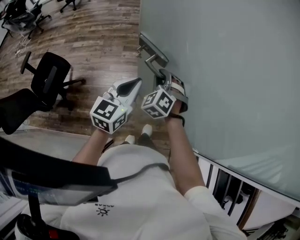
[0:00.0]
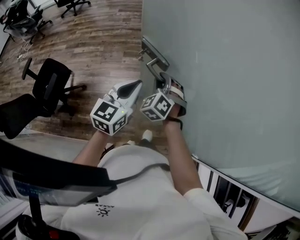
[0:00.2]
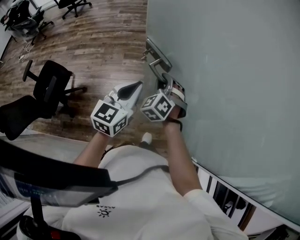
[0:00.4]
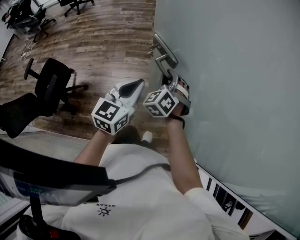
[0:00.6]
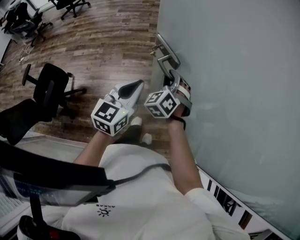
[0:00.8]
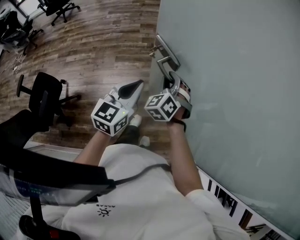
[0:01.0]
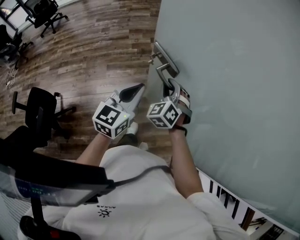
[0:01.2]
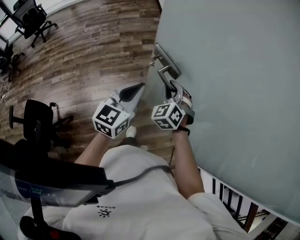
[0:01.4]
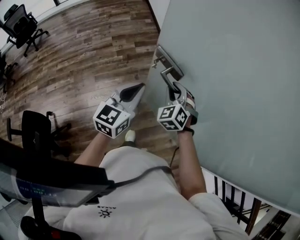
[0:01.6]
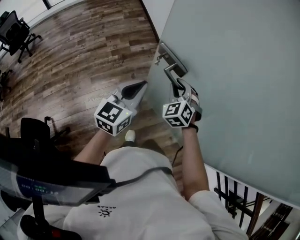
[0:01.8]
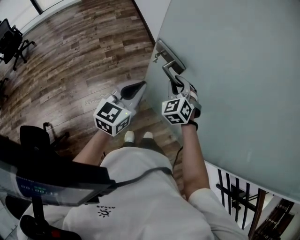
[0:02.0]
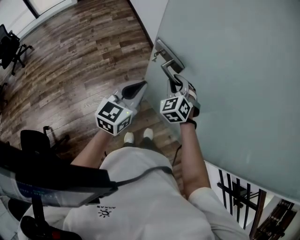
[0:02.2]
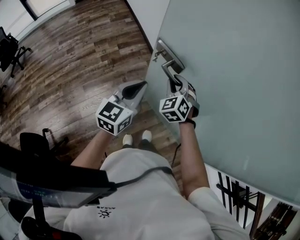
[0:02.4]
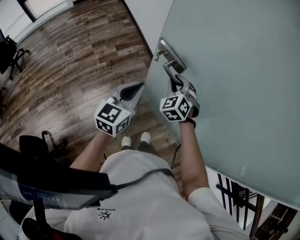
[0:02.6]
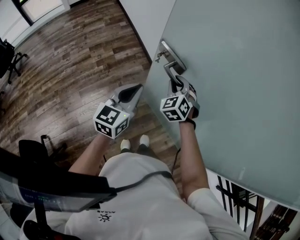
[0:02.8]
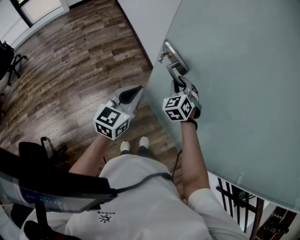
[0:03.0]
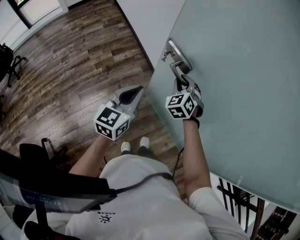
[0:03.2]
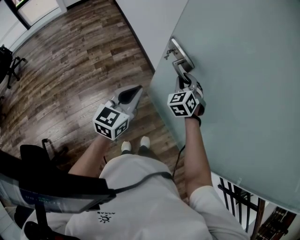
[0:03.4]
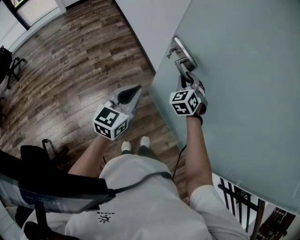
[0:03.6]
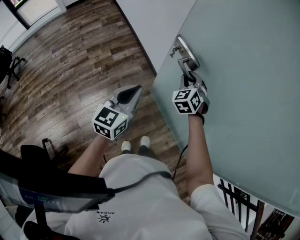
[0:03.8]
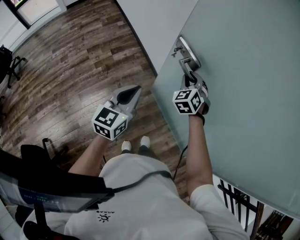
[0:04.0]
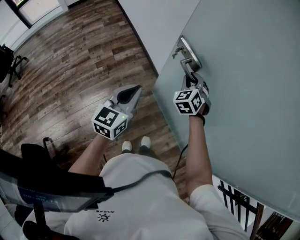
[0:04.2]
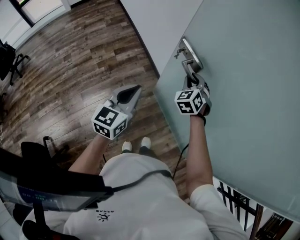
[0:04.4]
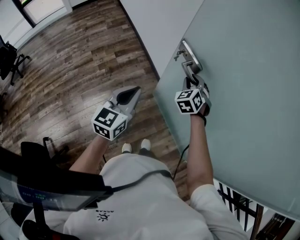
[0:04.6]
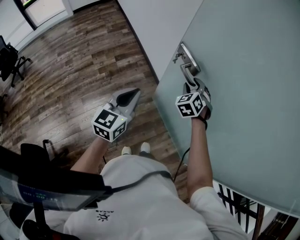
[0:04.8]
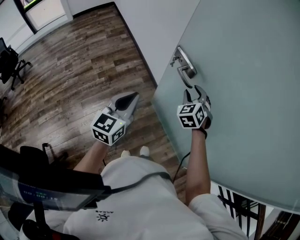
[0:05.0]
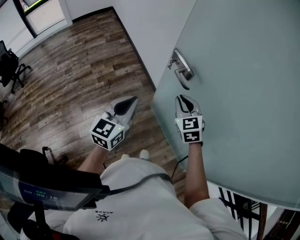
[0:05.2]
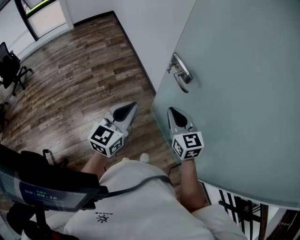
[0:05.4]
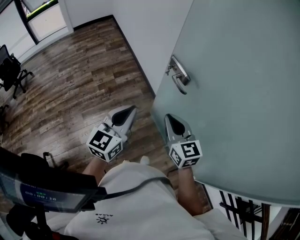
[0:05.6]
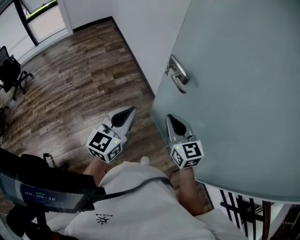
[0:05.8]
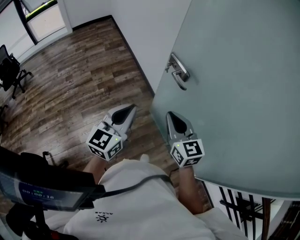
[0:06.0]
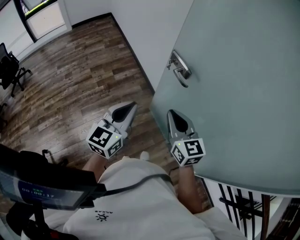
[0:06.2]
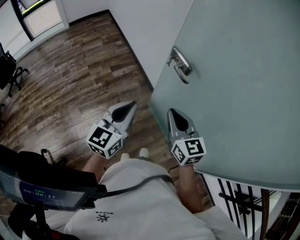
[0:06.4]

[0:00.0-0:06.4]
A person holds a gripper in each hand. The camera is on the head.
0.0 to 1.6 s: The left gripper travels forward by about 30 cm; the right gripper is displaced forward and to the right by approximately 30 cm, and changes its angle by roughly 20 degrees.
1.6 to 3.2 s: The left gripper moves forward, approximately 20 cm. The right gripper travels forward and to the right by roughly 25 cm.
4.8 to 6.4 s: The right gripper shifts approximately 25 cm backward and upward, swivels roughly 60 degrees, and closes its fingers. Meanwhile the left gripper moves backward, roughly 5 cm.

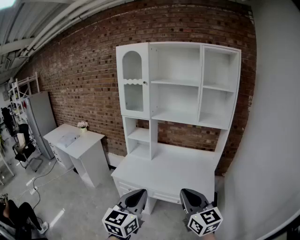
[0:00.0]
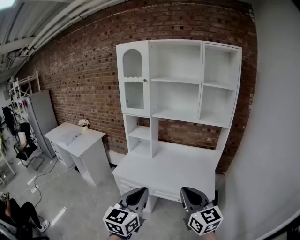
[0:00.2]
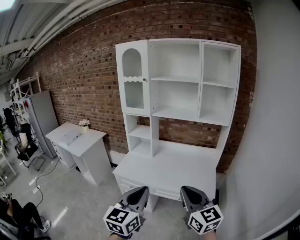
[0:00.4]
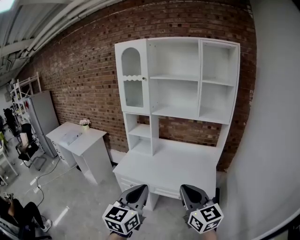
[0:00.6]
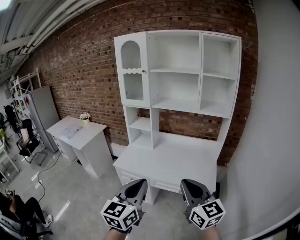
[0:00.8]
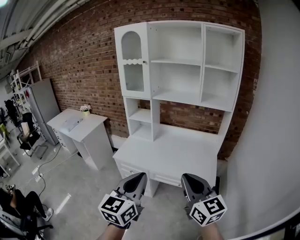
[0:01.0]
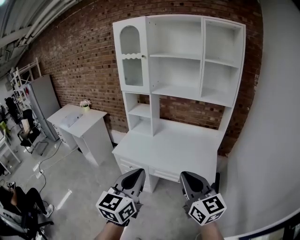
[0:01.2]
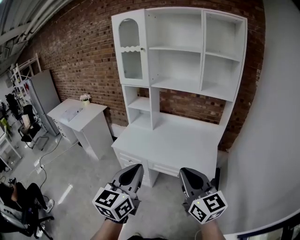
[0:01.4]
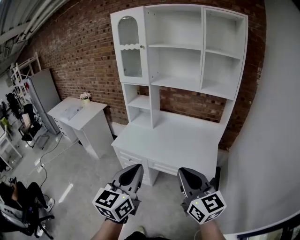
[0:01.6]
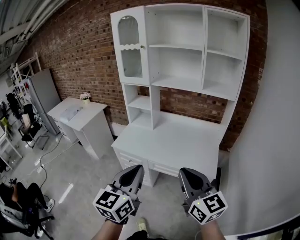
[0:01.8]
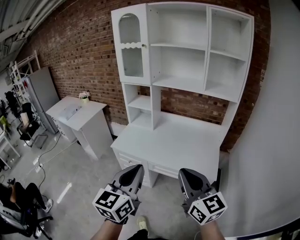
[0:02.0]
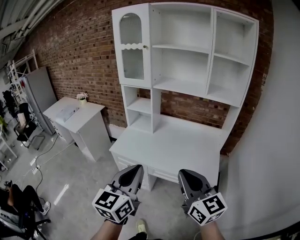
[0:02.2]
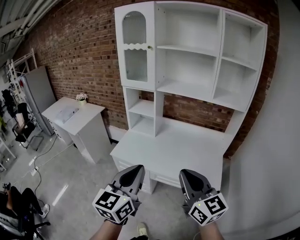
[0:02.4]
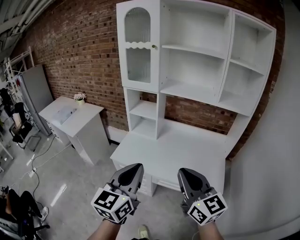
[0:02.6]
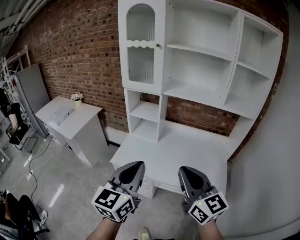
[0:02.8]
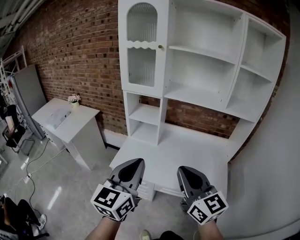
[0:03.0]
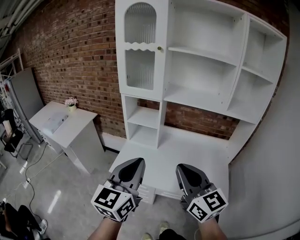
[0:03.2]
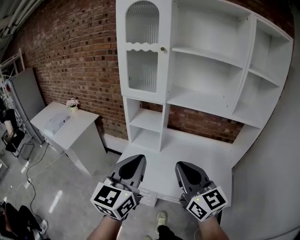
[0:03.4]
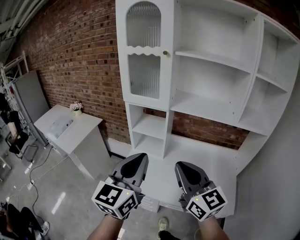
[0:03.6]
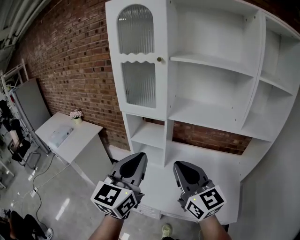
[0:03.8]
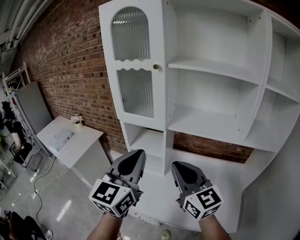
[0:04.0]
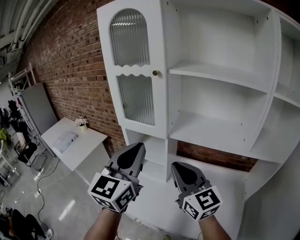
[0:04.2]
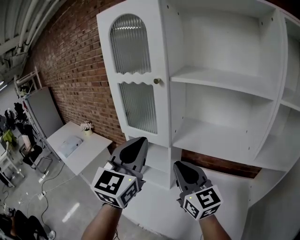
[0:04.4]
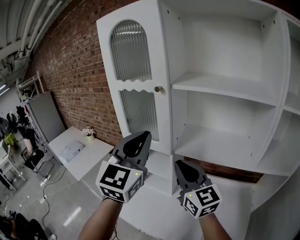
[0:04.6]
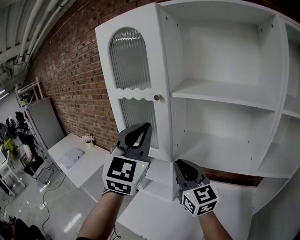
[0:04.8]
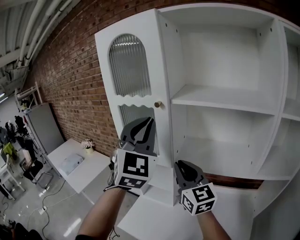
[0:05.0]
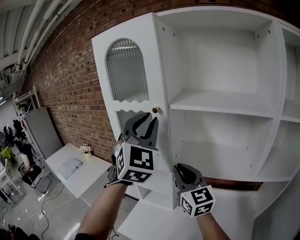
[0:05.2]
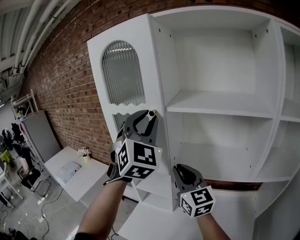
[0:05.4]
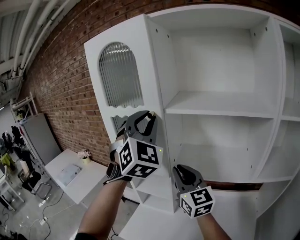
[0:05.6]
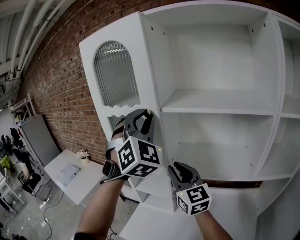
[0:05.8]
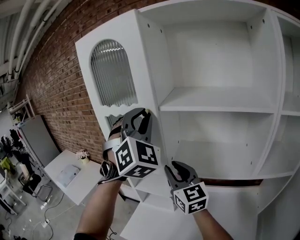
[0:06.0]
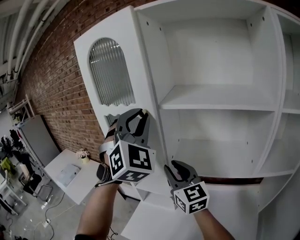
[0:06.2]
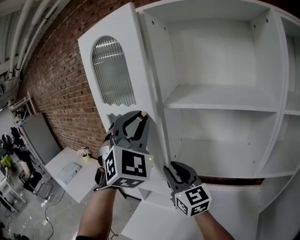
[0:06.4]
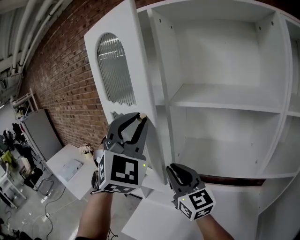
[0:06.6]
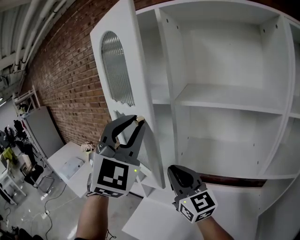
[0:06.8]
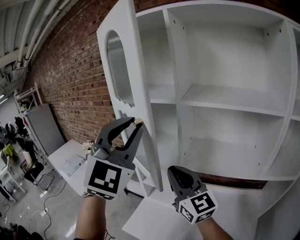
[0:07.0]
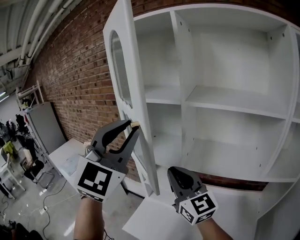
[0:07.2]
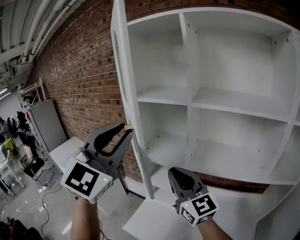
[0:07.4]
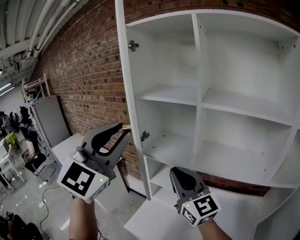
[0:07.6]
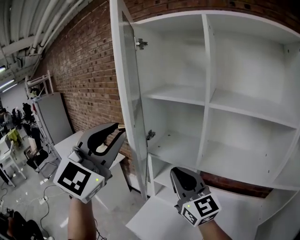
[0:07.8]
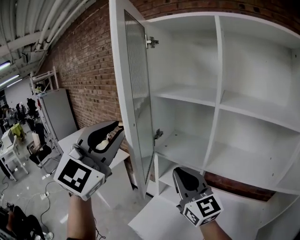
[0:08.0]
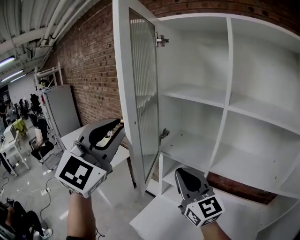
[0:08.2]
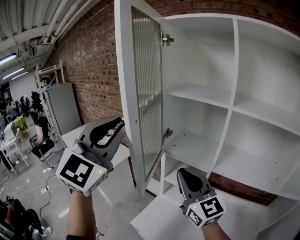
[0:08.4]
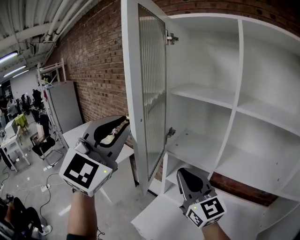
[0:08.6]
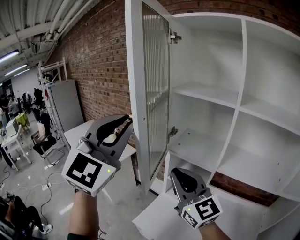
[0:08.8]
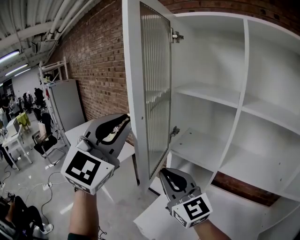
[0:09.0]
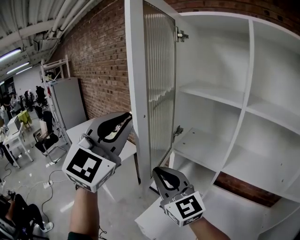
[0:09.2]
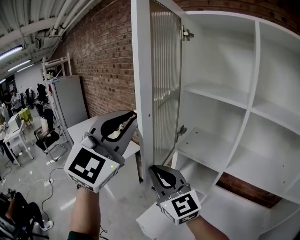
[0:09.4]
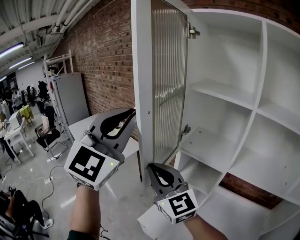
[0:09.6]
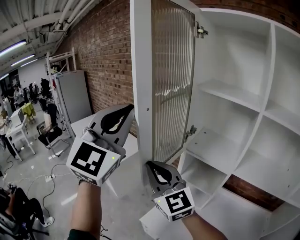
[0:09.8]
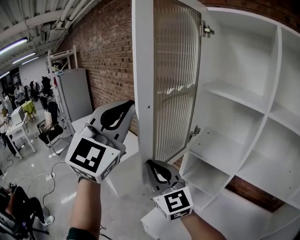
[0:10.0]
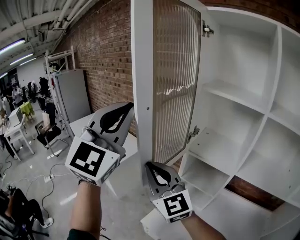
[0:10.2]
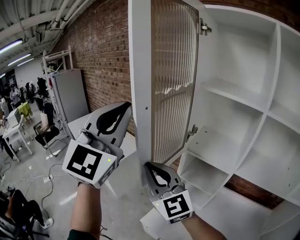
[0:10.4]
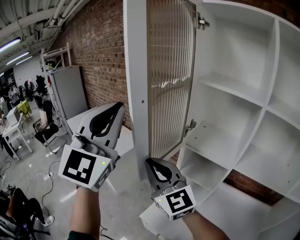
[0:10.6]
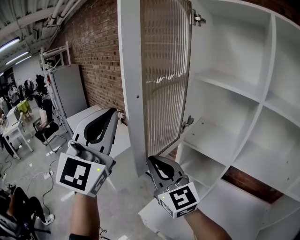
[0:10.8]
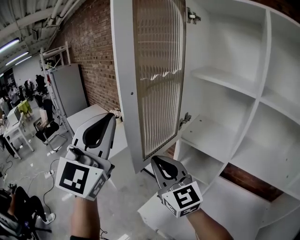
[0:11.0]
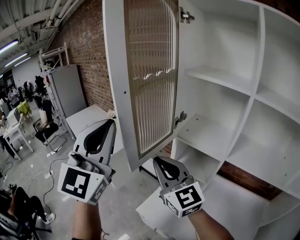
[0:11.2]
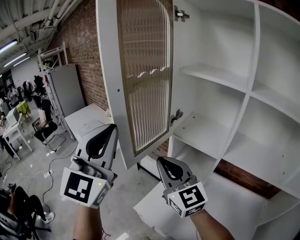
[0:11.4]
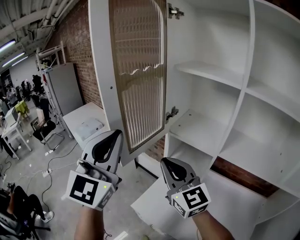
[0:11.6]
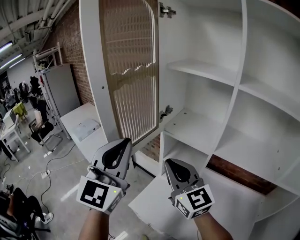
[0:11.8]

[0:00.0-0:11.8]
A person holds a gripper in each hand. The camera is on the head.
0.0 to 1.4 s: The grippers stay close to where they were, moving slightly.
1.4 to 3.0 s: The two grippers go approximately 30 cm forward and to the left.
3.0 to 4.4 s: The left gripper travels forward and upward by approximately 35 cm, and turns by some 20 degrees; the right gripper heads forward, covering approximately 35 cm.
4.4 to 6.0 s: The right gripper shifts approximately 15 cm forward. Meanwhile the left gripper travels forward and upward by some 20 cm, and rolls clockwise, seen from behind, by about 50 degrees.
6.0 to 7.4 s: The right gripper travels to the left and backward by approximately 10 cm. Meanwhile the left gripper heads to the left and backward, covering about 20 cm, and swivels approximately 30 degrees.
7.4 to 8.8 s: Both grippers move to the left, some 15 cm.
8.8 to 10.4 s: The right gripper heads to the left, covering roughly 15 cm, while the left gripper goes about 10 cm to the left and forward.
10.4 to 11.8 s: The right gripper goes roughly 15 cm to the right. Meanwhile the left gripper shifts some 20 cm downward, to the right and backward.

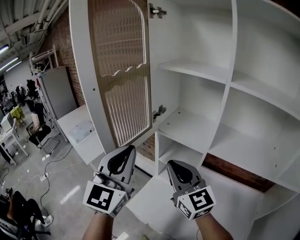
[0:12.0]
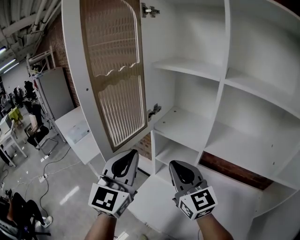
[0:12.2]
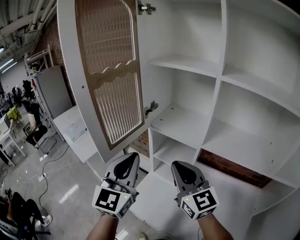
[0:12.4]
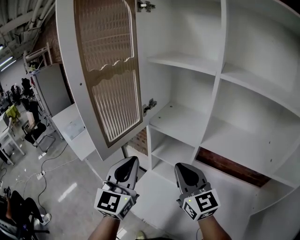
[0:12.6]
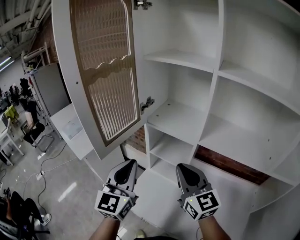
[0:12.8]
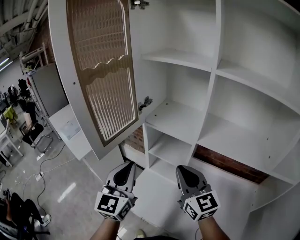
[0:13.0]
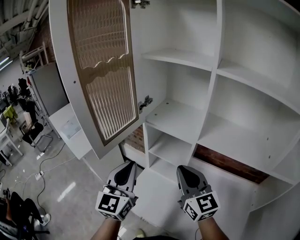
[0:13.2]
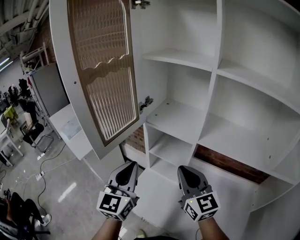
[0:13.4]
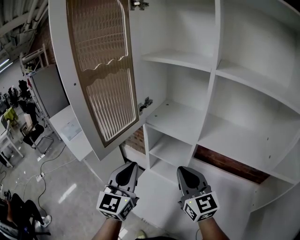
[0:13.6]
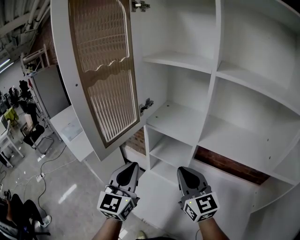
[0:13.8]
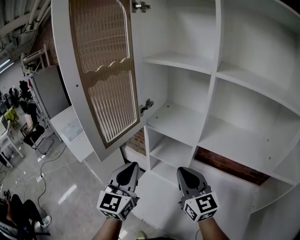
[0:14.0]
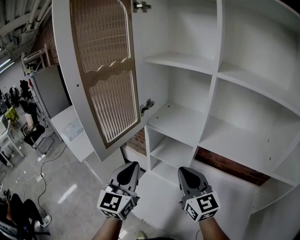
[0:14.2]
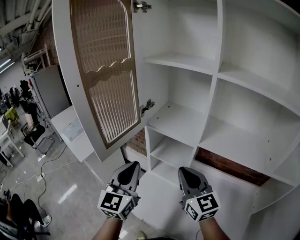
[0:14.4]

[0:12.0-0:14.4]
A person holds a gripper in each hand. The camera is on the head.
12.0 to 13.2 s: The left gripper goes about 10 cm downward. The right gripper is displaced to the right and downward by roughly 10 cm.
13.2 to 14.4 s: Neither gripper changes place.

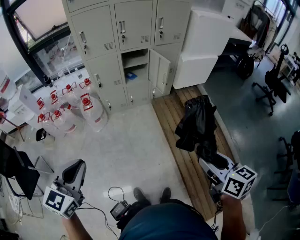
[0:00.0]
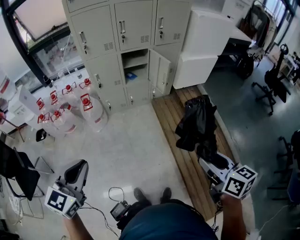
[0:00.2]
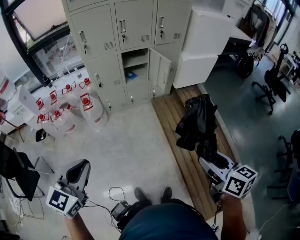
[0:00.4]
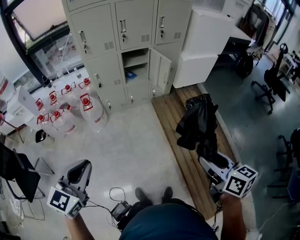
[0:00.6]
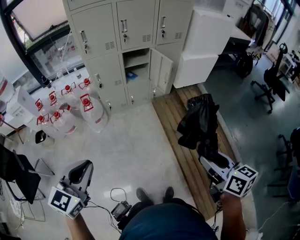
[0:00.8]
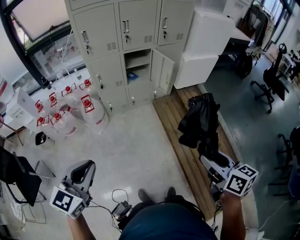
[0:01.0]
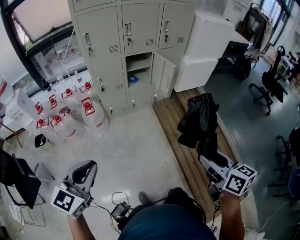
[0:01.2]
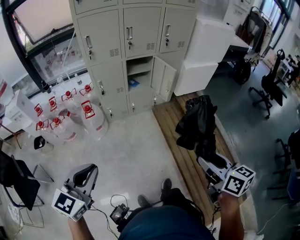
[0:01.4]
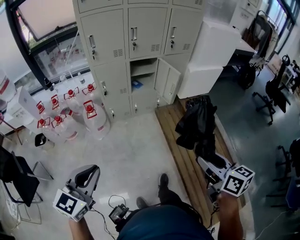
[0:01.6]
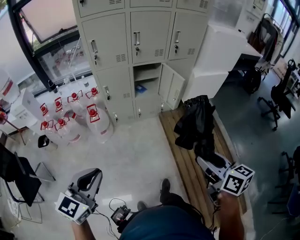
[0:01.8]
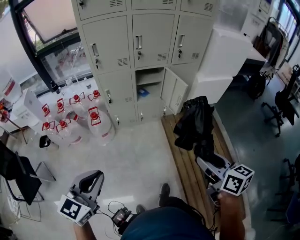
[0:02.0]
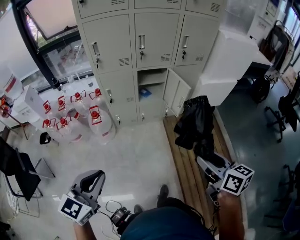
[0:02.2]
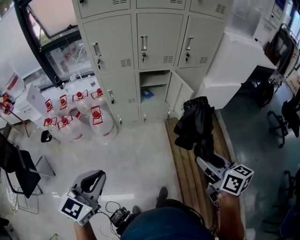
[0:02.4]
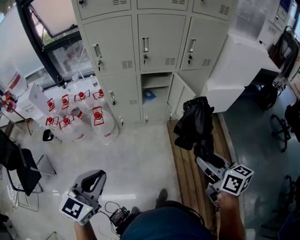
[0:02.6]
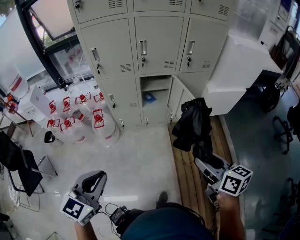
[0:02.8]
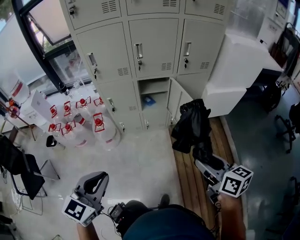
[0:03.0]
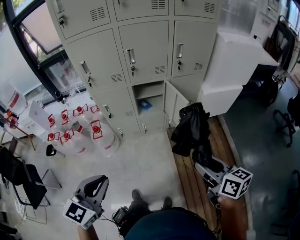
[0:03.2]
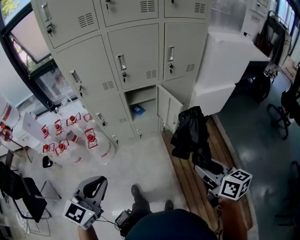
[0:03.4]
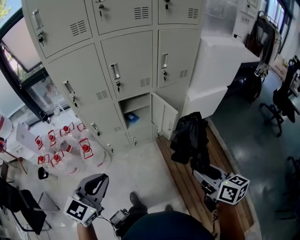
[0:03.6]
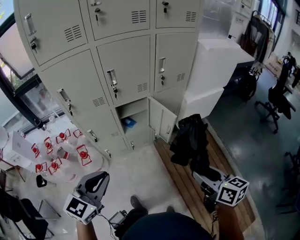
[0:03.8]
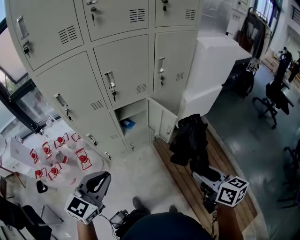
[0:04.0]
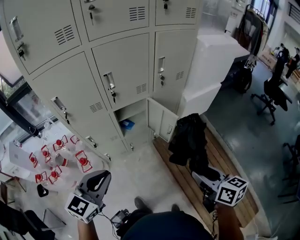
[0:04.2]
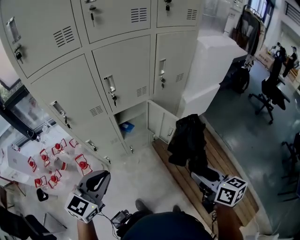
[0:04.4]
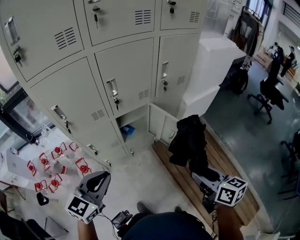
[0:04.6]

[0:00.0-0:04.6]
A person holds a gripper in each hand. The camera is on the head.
0.0 to 1.6 s: The right gripper travels to the left and forward by approximately 15 cm. Meanwhile the left gripper heads forward and to the left, covering roughly 10 cm.
1.6 to 3.0 s: The grippers both shift forward and to the right by some 25 cm.
3.0 to 4.6 s: The right gripper travels forward and to the left by about 15 cm, and swivels some 20 degrees. Meanwhile the left gripper moves forward, roughly 30 cm, and rotates about 20 degrees.
